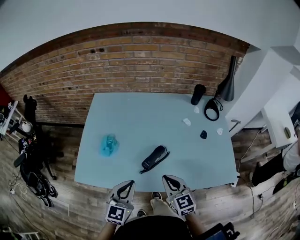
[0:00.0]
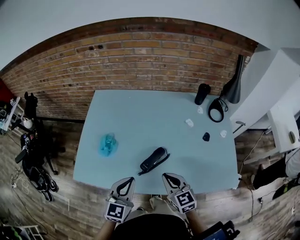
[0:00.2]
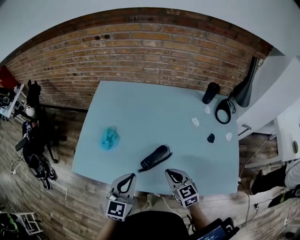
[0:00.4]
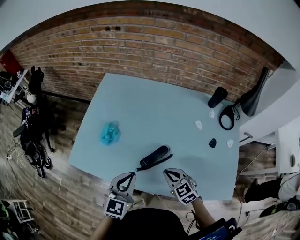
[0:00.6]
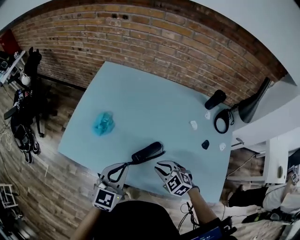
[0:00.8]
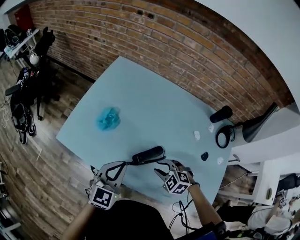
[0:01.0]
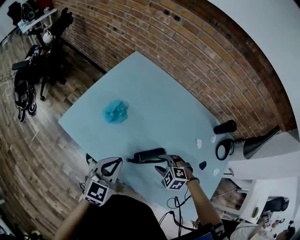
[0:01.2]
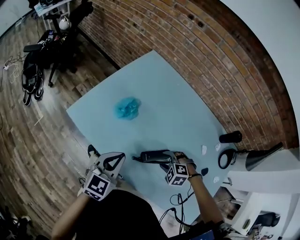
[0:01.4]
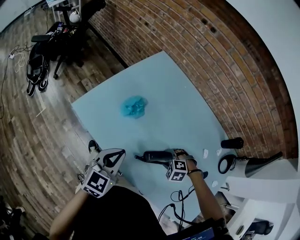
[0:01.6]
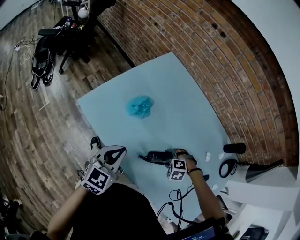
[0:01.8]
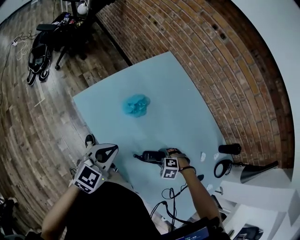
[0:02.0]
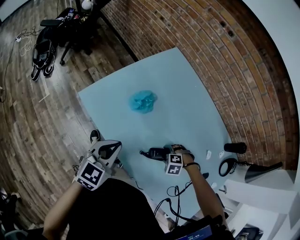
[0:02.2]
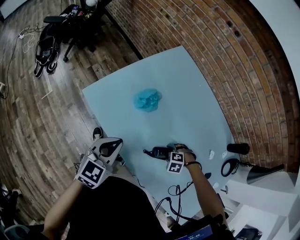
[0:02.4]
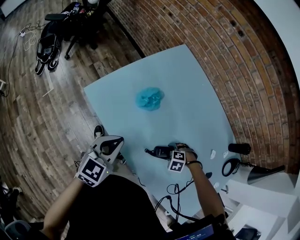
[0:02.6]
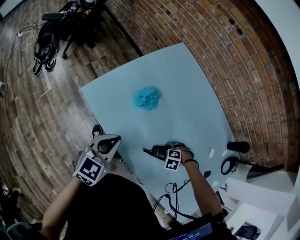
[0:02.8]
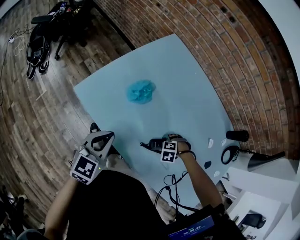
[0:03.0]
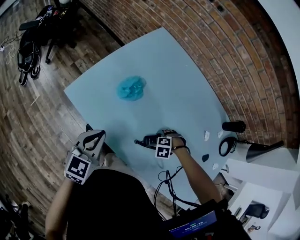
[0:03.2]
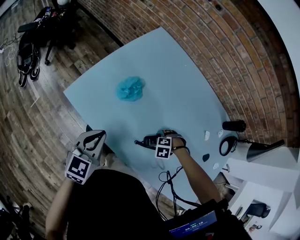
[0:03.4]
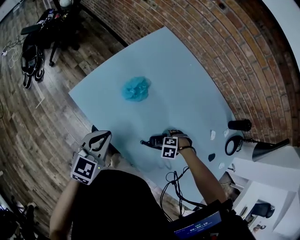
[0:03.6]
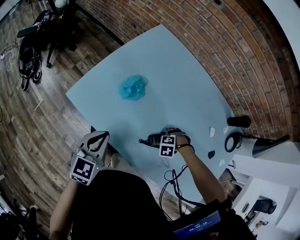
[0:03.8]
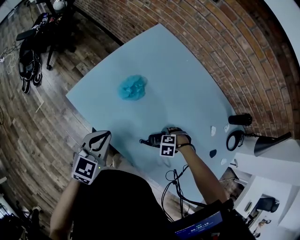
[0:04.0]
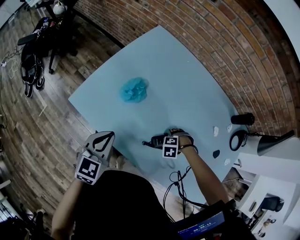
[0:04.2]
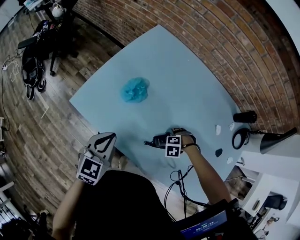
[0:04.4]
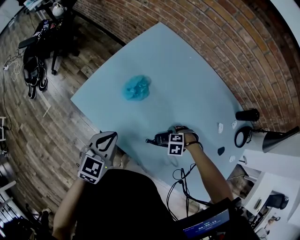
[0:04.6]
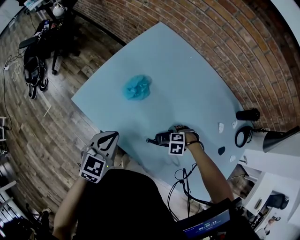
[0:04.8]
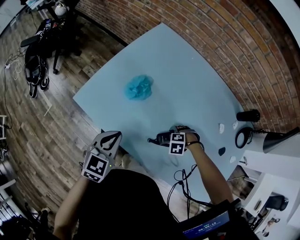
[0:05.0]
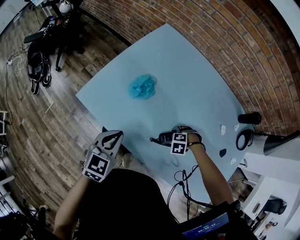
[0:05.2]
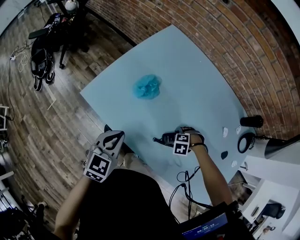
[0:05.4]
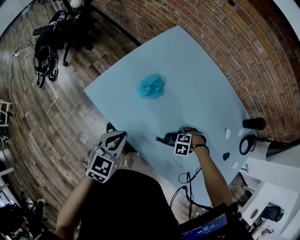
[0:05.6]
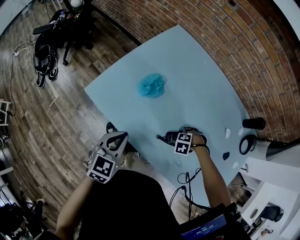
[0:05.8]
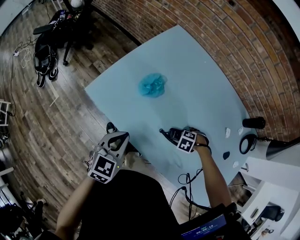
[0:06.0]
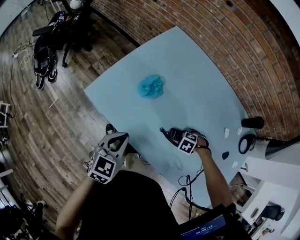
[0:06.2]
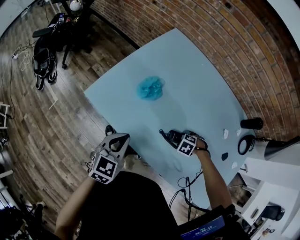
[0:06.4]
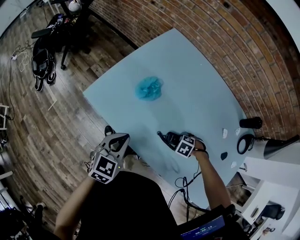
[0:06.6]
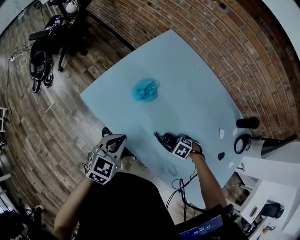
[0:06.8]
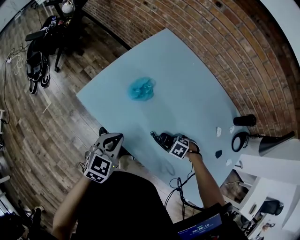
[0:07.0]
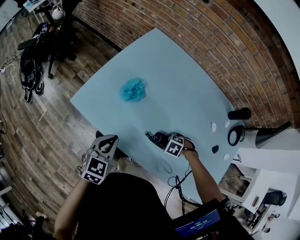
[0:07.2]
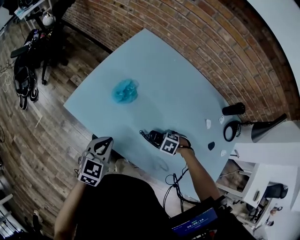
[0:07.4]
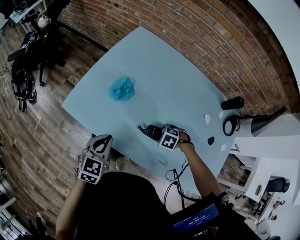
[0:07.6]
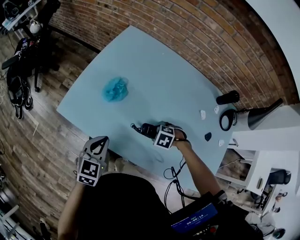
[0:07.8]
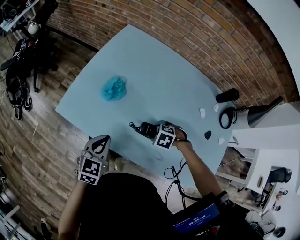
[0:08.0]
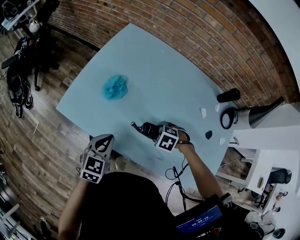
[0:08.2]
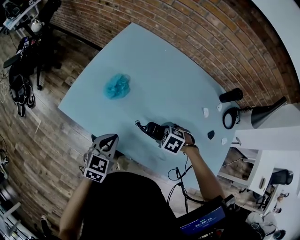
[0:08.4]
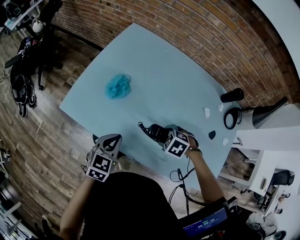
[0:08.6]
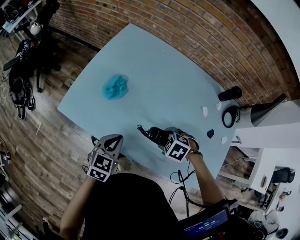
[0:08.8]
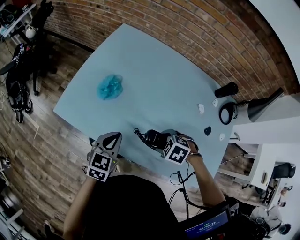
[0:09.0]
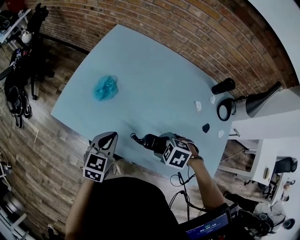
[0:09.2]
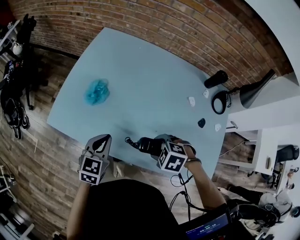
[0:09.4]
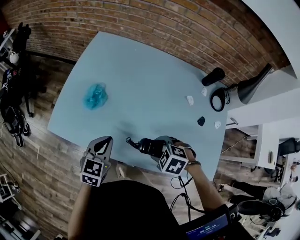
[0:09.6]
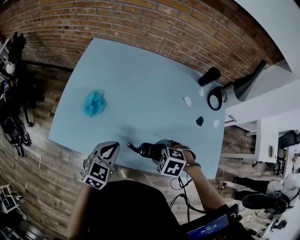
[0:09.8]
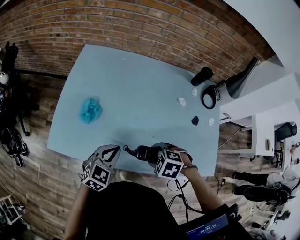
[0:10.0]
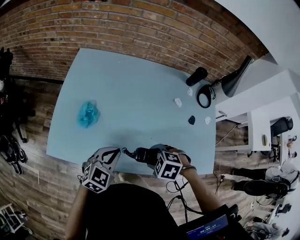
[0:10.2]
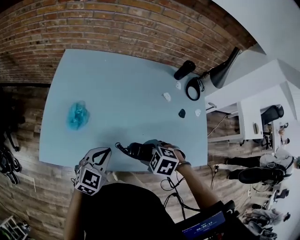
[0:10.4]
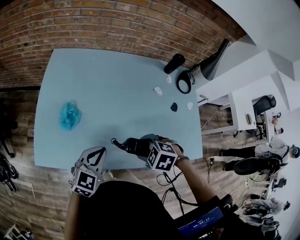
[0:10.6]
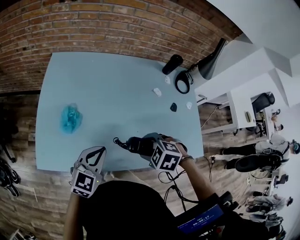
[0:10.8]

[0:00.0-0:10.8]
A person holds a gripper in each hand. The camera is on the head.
0:00.0 to 0:01.6: The left gripper shifts by about 10 cm, and turns by roughly 30 degrees, while the right gripper goes some 20 cm downward, tilts its fingers about 60 degrees downward, and opens its fingers.
0:01.6 to 0:03.0: The right gripper is displaced downward by approximately 10 cm. The left gripper moves some 10 cm.
0:03.0 to 0:04.6: The grippers stay close to where they were, moving slightly.
0:04.6 to 0:06.2: There are only small adjustments of the grippers.
0:06.2 to 0:07.8: The right gripper heads upward, covering approximately 5 cm.
0:07.8 to 0:09.2: The right gripper travels upward by roughly 10 cm. Meanwhile the left gripper ends up roughly 10 cm from where it was.
0:09.2 to 0:10.8: The left gripper ends up approximately 5 cm from where it was, and swivels approximately 40 degrees; the right gripper is displaced upward by about 5 cm, and swivels roughly 20 degrees.

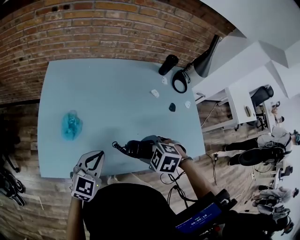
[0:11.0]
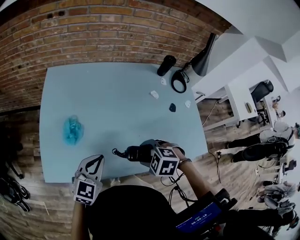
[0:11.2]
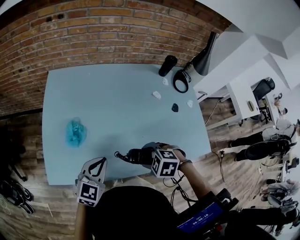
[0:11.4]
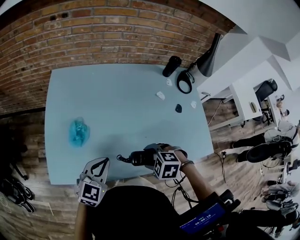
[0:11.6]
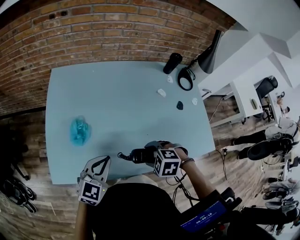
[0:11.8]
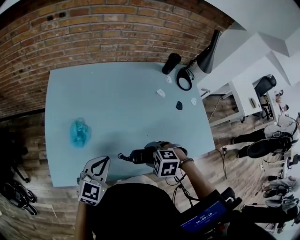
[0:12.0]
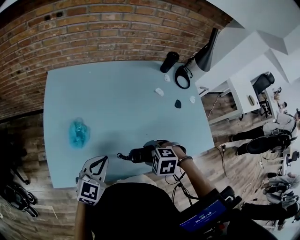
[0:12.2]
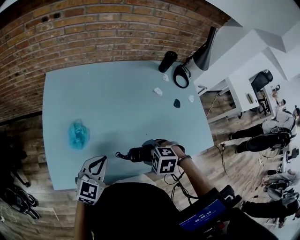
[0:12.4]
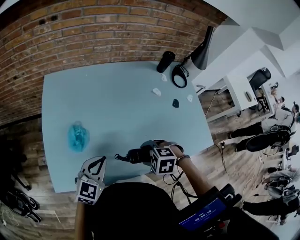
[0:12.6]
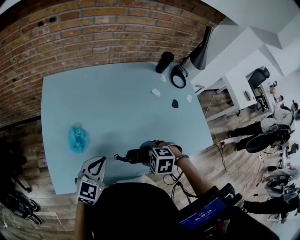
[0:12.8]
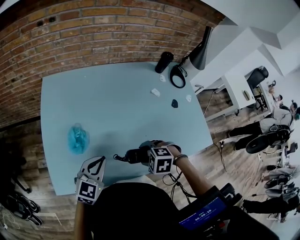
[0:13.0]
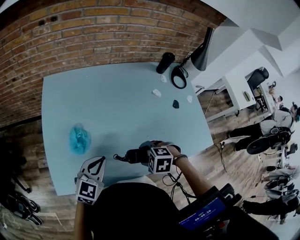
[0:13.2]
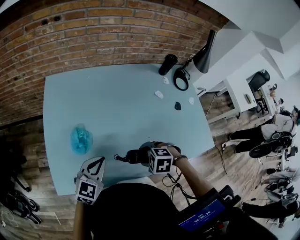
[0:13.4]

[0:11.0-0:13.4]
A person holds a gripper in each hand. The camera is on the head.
0:11.0 to 0:12.2: The right gripper moves downward, some 5 cm.
0:12.2 to 0:13.4: The grippers move only a little.

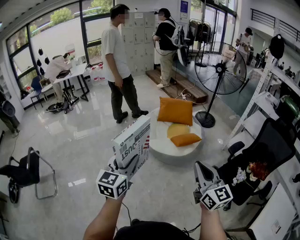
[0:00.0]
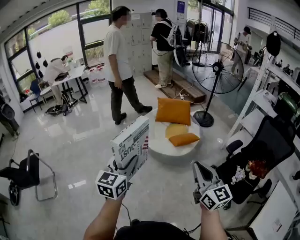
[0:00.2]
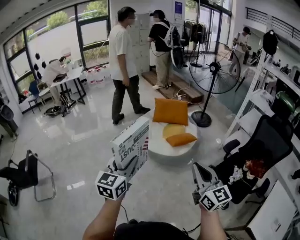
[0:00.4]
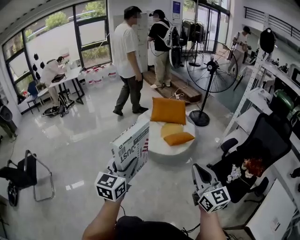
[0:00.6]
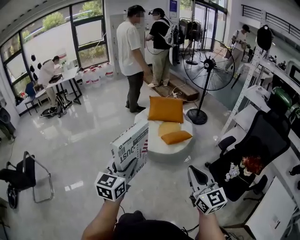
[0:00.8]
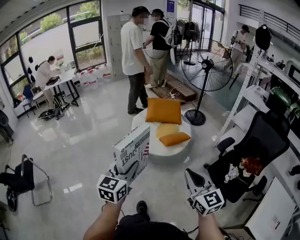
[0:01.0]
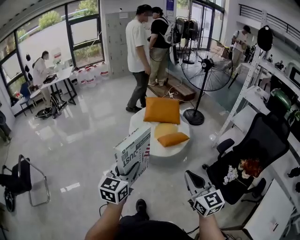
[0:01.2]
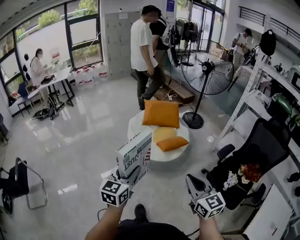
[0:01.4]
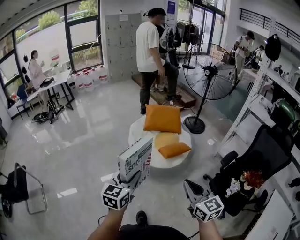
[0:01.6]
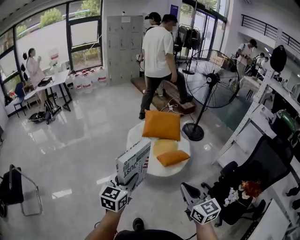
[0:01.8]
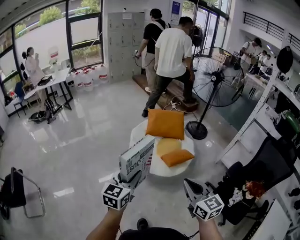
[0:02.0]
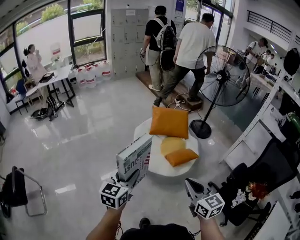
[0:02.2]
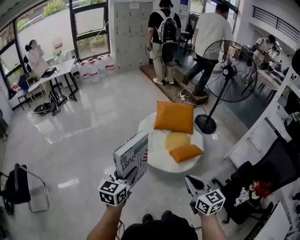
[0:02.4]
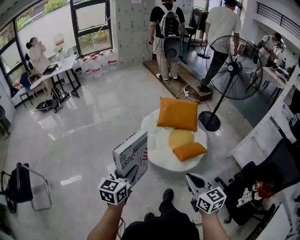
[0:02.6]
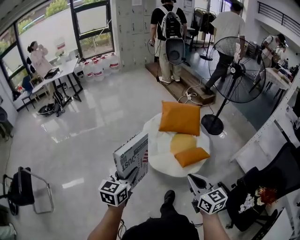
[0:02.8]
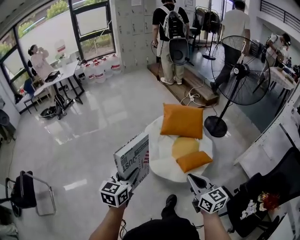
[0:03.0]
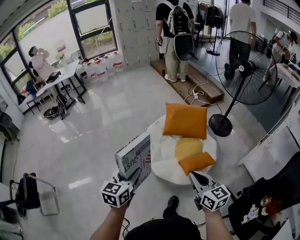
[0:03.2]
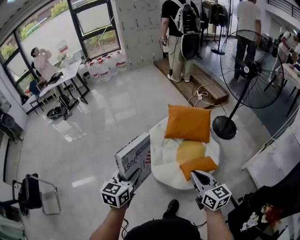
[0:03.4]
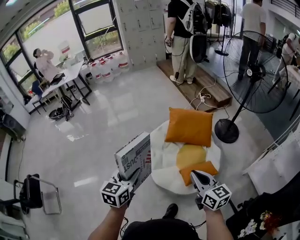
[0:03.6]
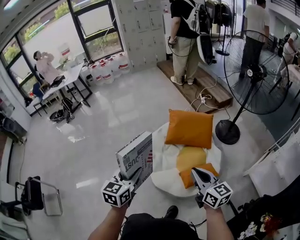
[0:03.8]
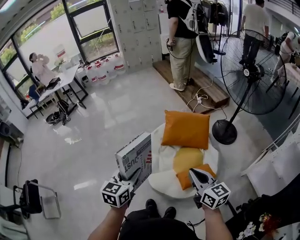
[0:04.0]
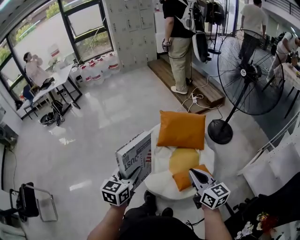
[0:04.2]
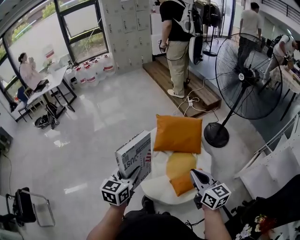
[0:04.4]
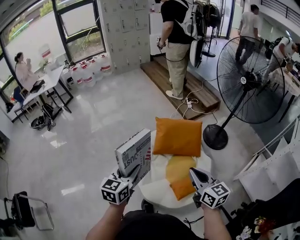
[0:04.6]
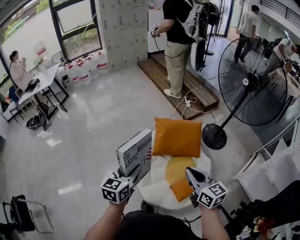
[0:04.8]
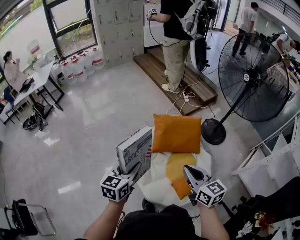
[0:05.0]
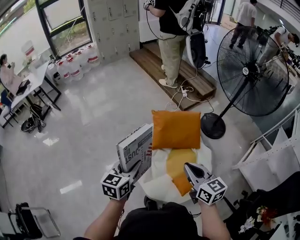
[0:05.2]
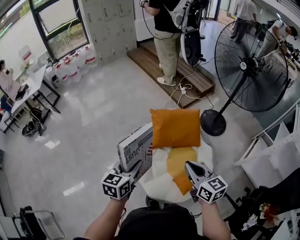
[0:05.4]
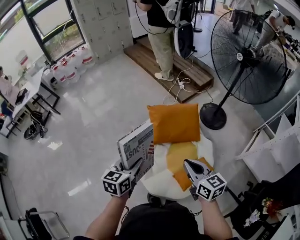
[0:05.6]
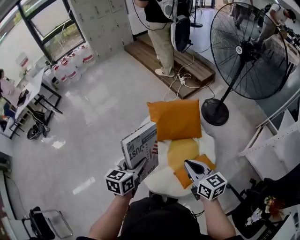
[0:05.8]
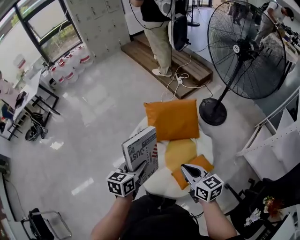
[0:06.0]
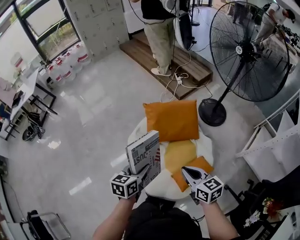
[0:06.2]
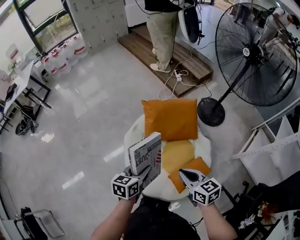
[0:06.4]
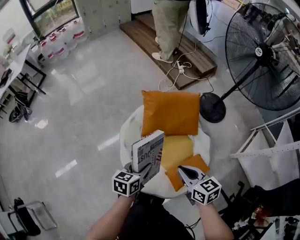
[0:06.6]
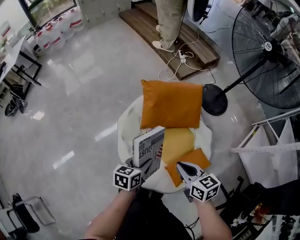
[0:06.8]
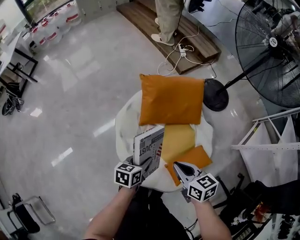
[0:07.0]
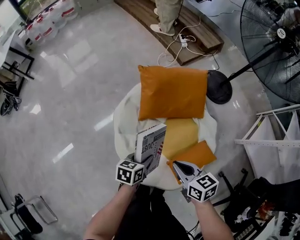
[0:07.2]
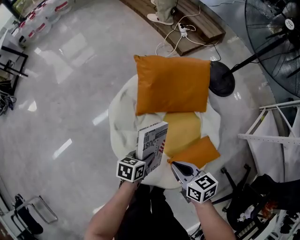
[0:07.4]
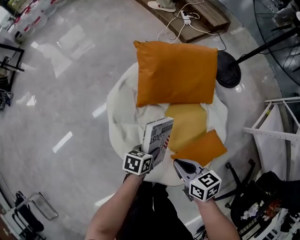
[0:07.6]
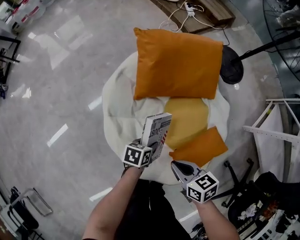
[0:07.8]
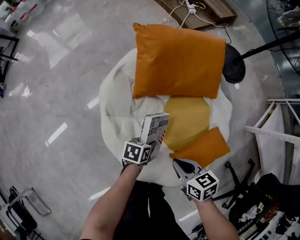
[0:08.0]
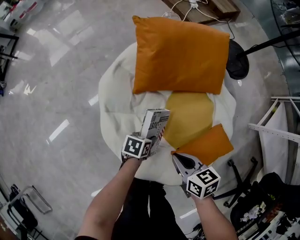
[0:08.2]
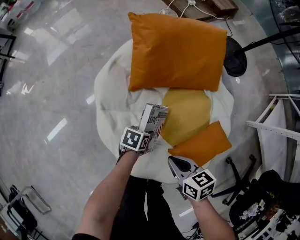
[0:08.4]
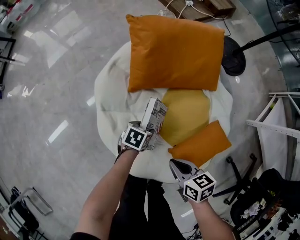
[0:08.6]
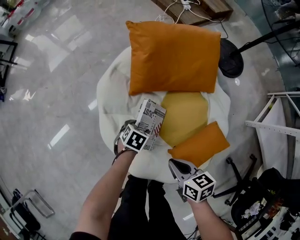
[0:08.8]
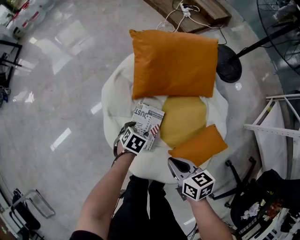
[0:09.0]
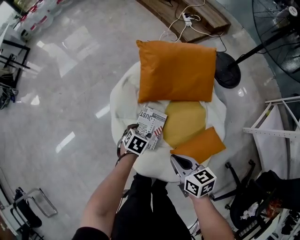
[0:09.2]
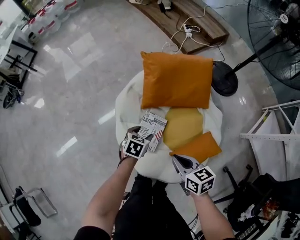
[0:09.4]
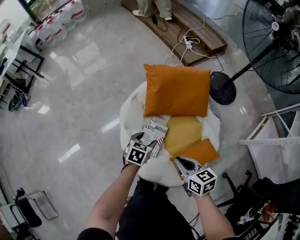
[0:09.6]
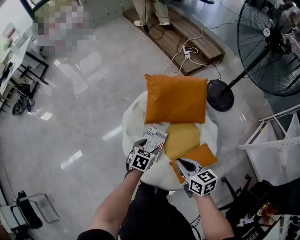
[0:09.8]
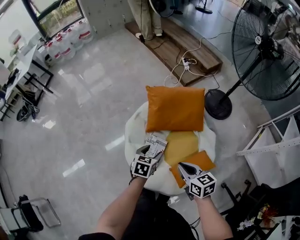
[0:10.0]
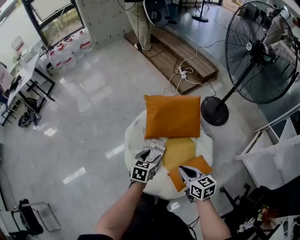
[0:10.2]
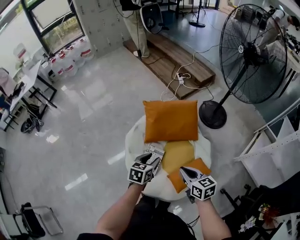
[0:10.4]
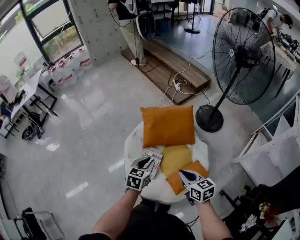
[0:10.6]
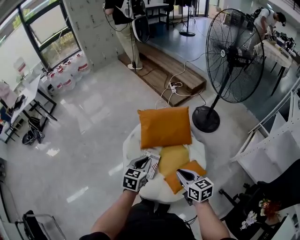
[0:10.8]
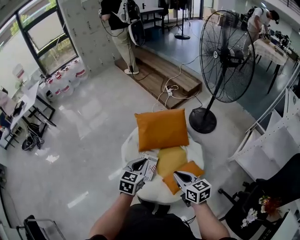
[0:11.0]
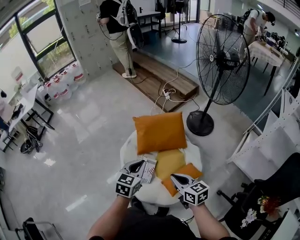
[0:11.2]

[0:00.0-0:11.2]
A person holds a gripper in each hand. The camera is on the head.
0:00.0 to 0:01.6: The left gripper shifts roughly 15 cm forward, to the right and downward; the right gripper travels forward and downward by some 15 cm.
0:01.6 to 0:03.2: Both grippers move forward, approximately 35 cm.
0:03.2 to 0:04.8: The two grippers go roughly 30 cm forward.
0:04.8 to 0:06.4: The left gripper shifts roughly 20 cm downward, to the right and forward, and changes its angle by approximately 20 degrees. The right gripper moves downward, some 15 cm.
0:06.4 to 0:08.0: The two grippers go approximately 40 cm downward. The right gripper rotates approximately 20 degrees, while the left gripper swivels roughly 30 degrees.
0:08.0 to 0:09.6: Both grippers move upward, about 20 cm. The left gripper rotates about 30 degrees, and opens.
0:09.6 to 0:11.2: The right gripper travels upward and backward by approximately 25 cm. Meanwhile the left gripper shifts about 35 cm upward, changes its angle by some 30 degrees, and closes.
